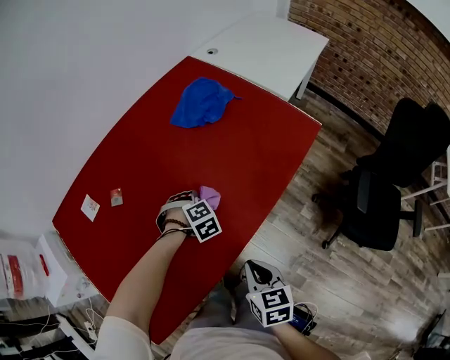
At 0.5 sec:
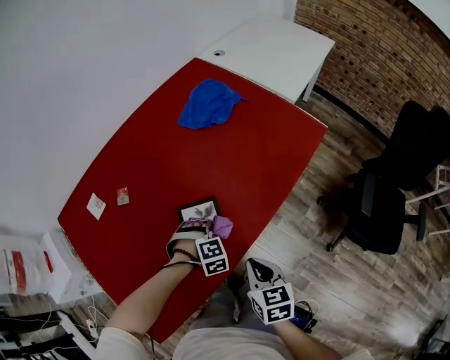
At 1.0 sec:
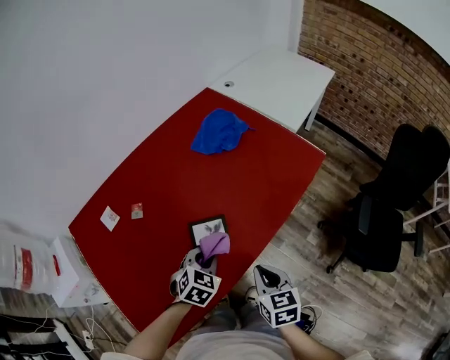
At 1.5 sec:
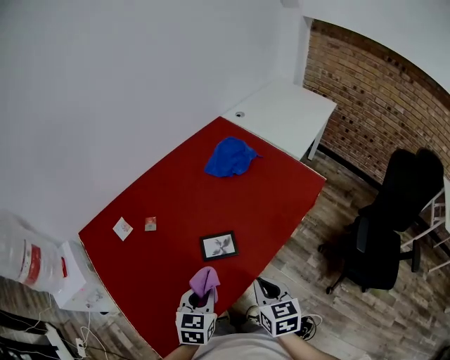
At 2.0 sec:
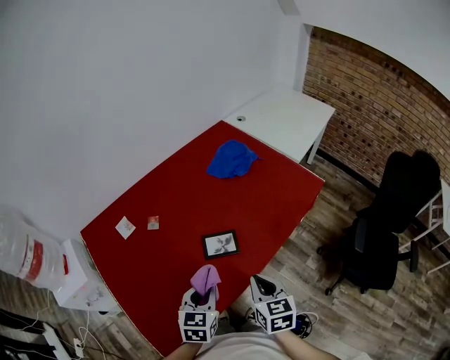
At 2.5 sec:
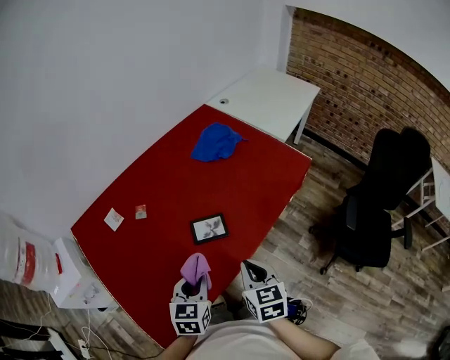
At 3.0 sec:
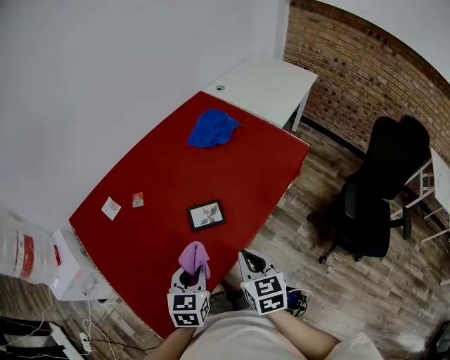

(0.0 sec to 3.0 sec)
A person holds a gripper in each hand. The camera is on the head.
0.0 sec - 1.5 sec: The left gripper goes approximately 30 cm backward and upward, and twists roughly 60 degrees counterclockwise, seen from behind, while the right gripper travels upward by some 10 cm.
1.5 sec - 3.0 sec: The grippers move only a little.

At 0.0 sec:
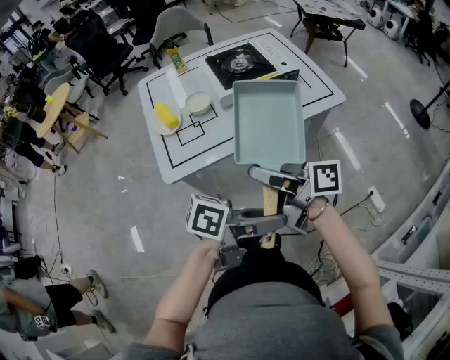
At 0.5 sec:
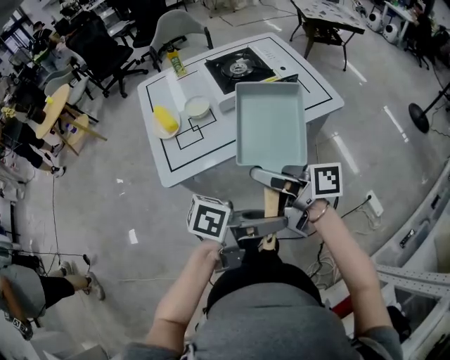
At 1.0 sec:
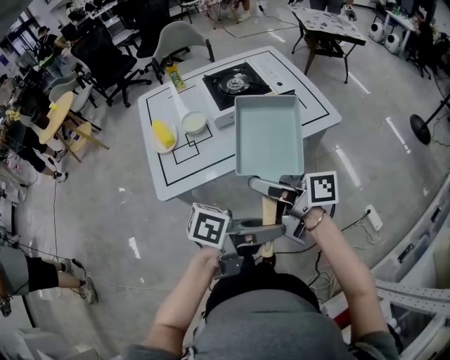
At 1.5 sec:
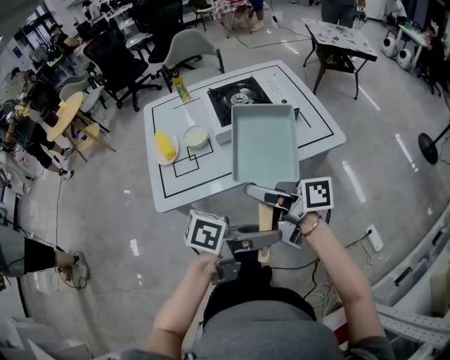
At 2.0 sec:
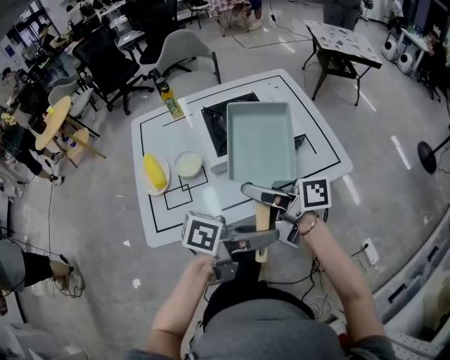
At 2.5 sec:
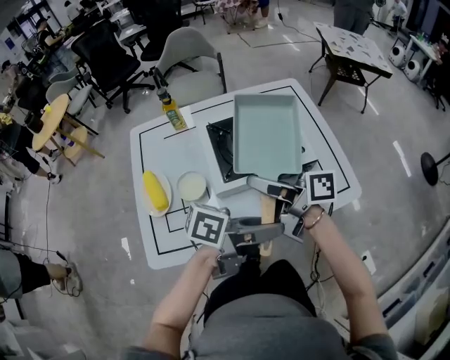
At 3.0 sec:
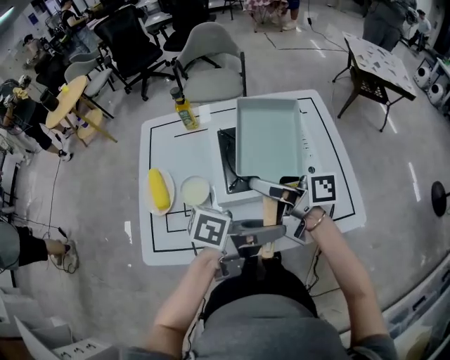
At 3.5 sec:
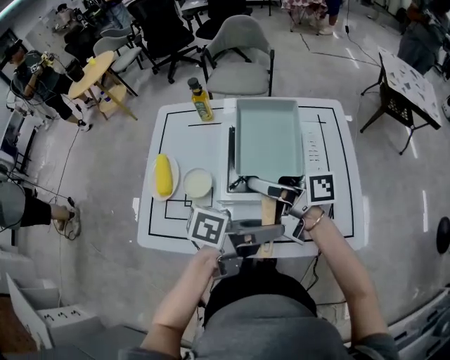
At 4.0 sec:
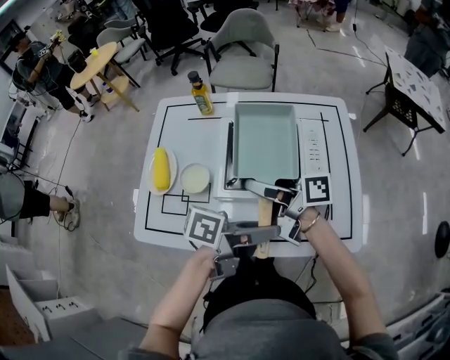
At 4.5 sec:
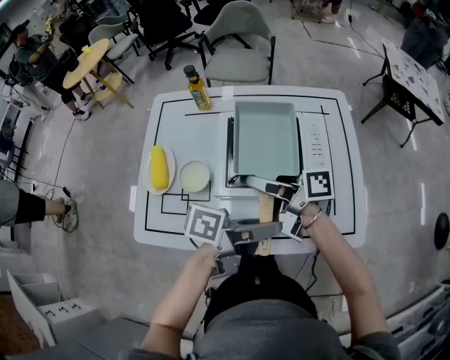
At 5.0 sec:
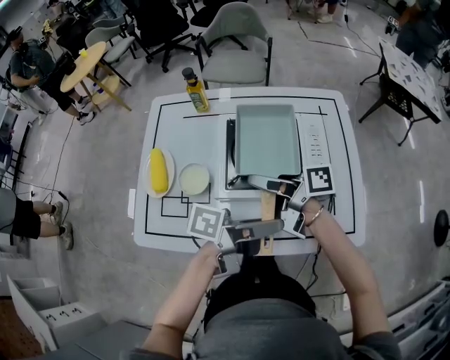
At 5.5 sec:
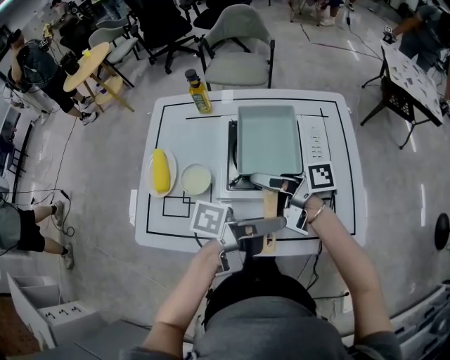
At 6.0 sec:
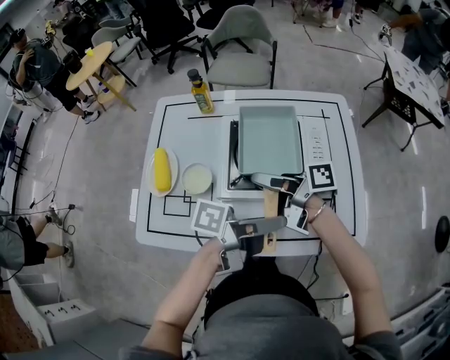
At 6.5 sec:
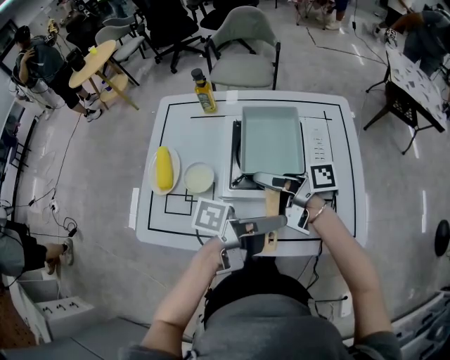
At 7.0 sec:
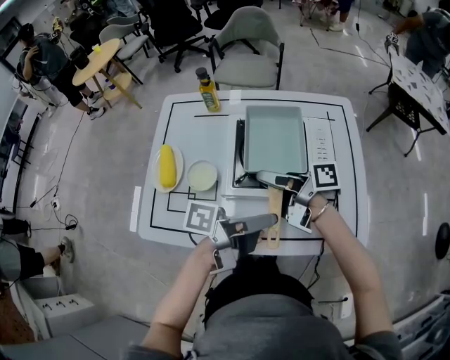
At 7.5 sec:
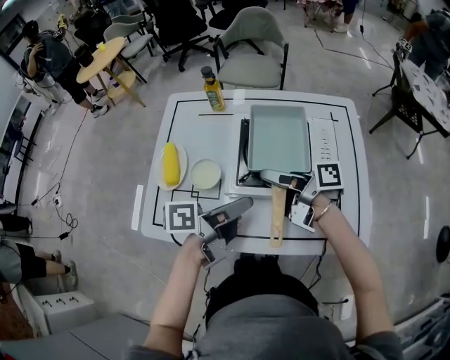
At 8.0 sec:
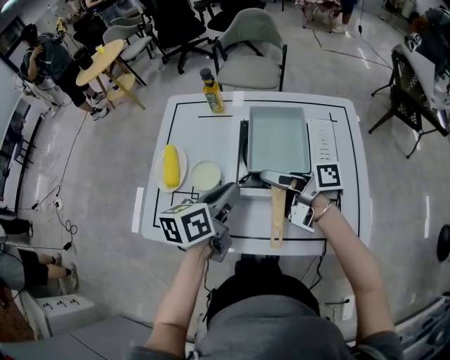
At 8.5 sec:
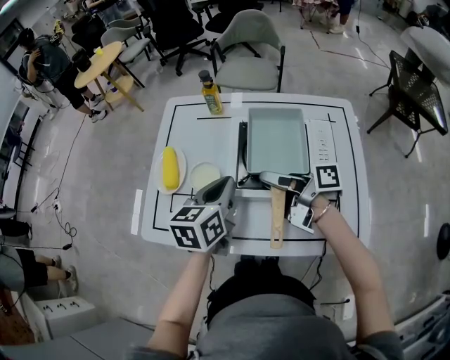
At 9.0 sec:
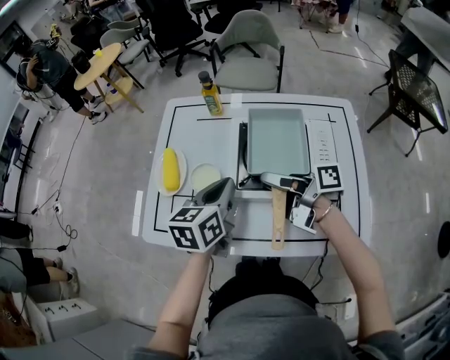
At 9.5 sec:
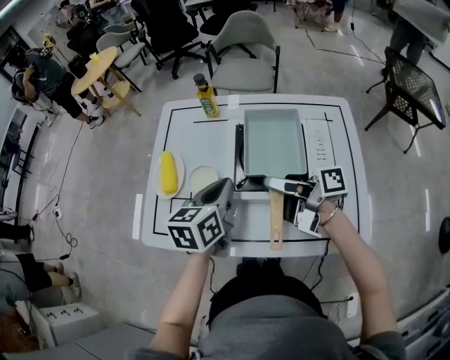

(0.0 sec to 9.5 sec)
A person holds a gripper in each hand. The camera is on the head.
0.0 sec - 2.0 sec: The right gripper changes place by about 20 cm; the left gripper shifts by approximately 20 cm.
2.0 sec - 4.0 sec: The right gripper moves roughly 15 cm, and changes its angle by some 20 degrees. Meanwhile the left gripper moves some 20 cm, and changes its angle by some 20 degrees.
4.0 sec - 5.5 sec: There are only small adjustments of the grippers.
5.5 sec - 7.5 sec: The left gripper changes place by some 10 cm, and turns by some 30 degrees.
7.5 sec - 9.5 sec: The left gripper moves forward, some 5 cm, turns by some 50 degrees, and closes.

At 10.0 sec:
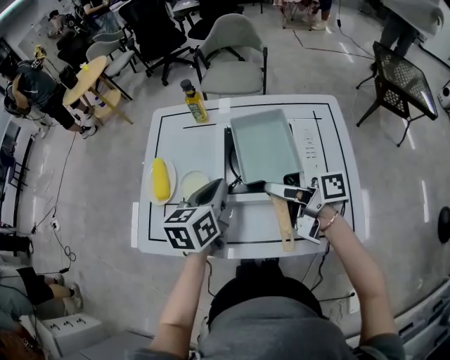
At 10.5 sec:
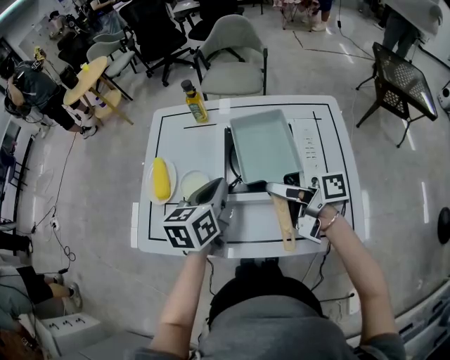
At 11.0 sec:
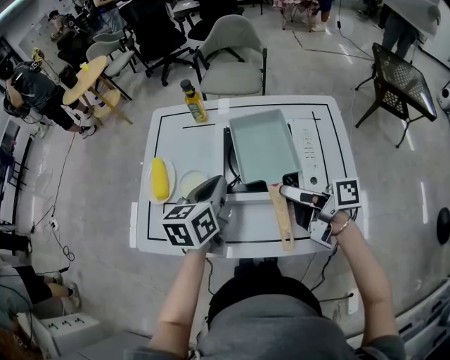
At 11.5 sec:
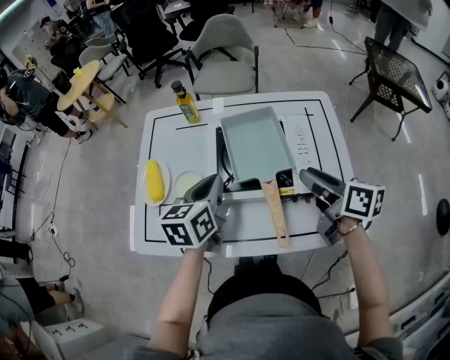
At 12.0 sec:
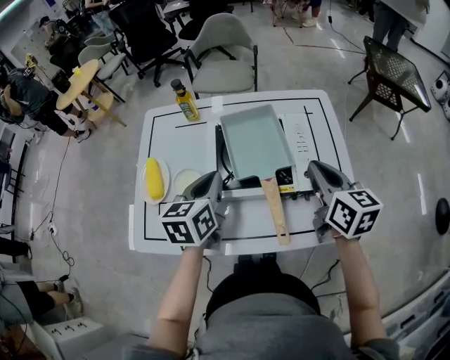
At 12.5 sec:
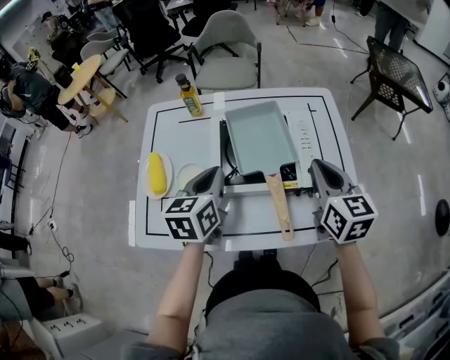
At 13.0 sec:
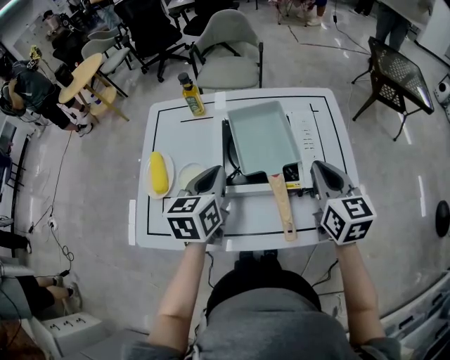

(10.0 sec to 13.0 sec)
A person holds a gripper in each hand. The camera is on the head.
10.0 sec - 11.5 sec: The right gripper goes some 10 cm to the right, and changes its angle by roughly 40 degrees.
11.5 sec - 13.0 sec: The right gripper swivels roughly 40 degrees, and closes.

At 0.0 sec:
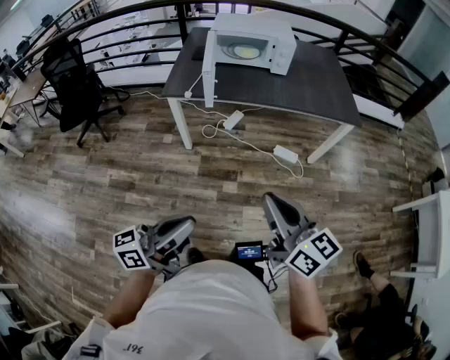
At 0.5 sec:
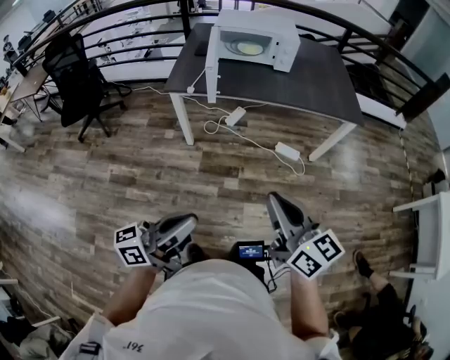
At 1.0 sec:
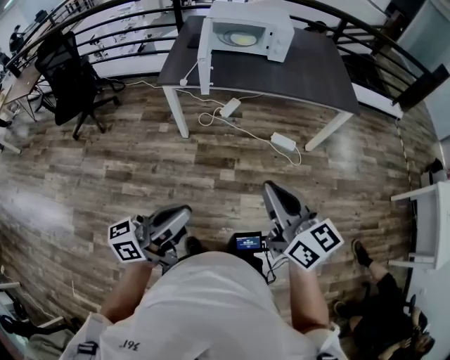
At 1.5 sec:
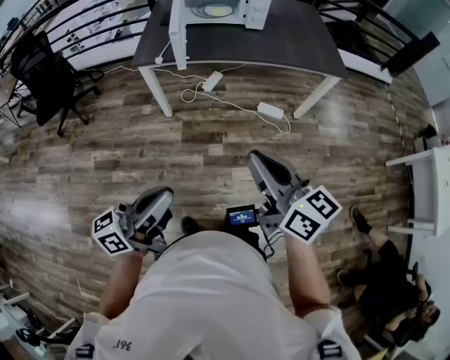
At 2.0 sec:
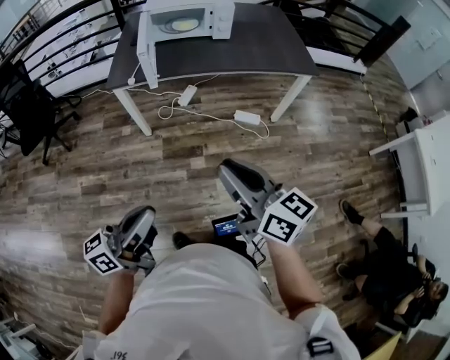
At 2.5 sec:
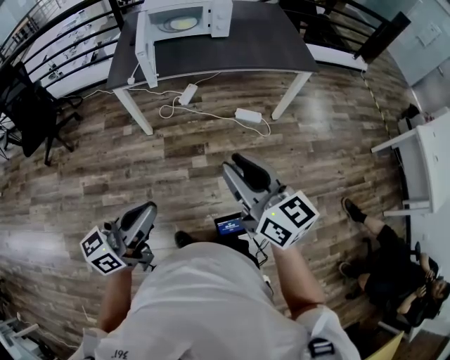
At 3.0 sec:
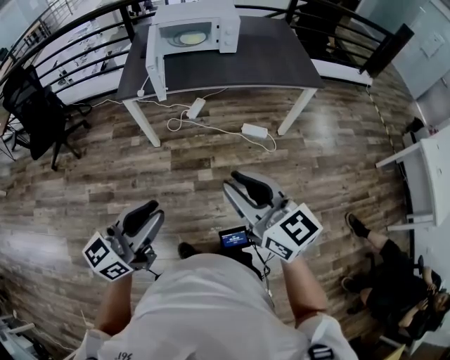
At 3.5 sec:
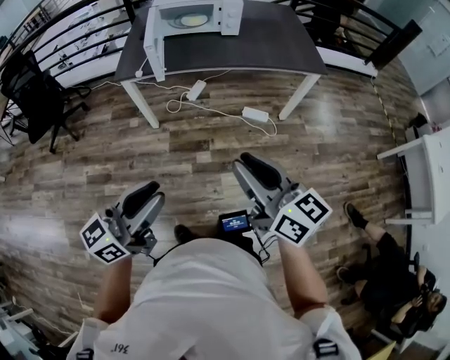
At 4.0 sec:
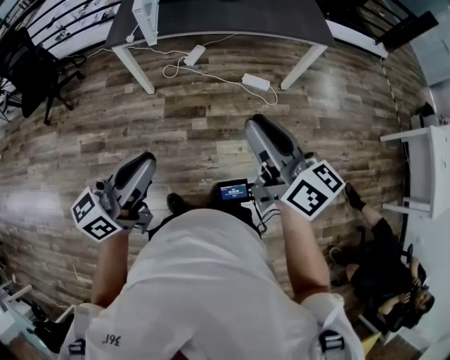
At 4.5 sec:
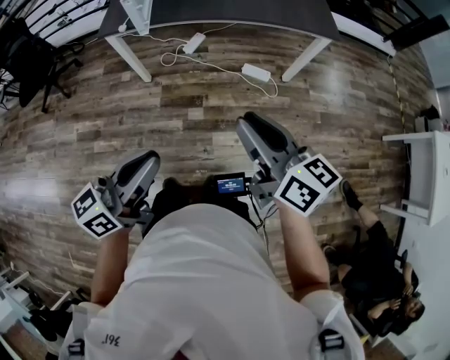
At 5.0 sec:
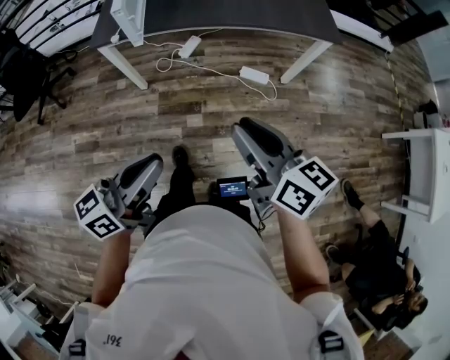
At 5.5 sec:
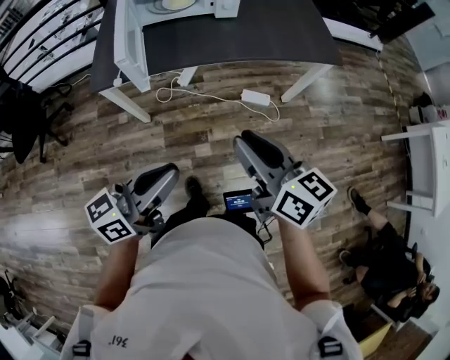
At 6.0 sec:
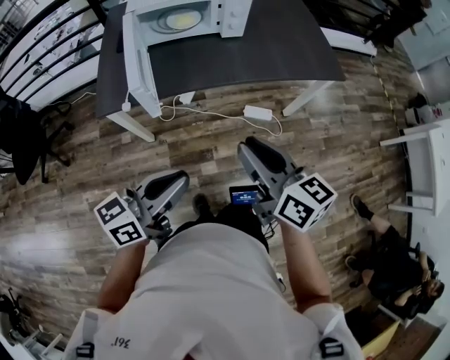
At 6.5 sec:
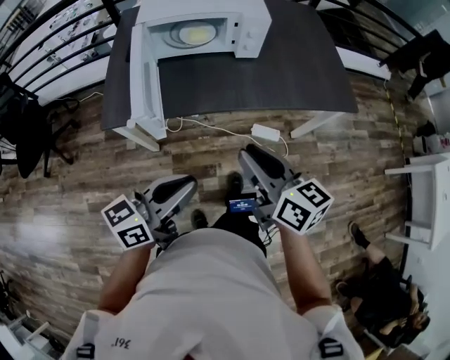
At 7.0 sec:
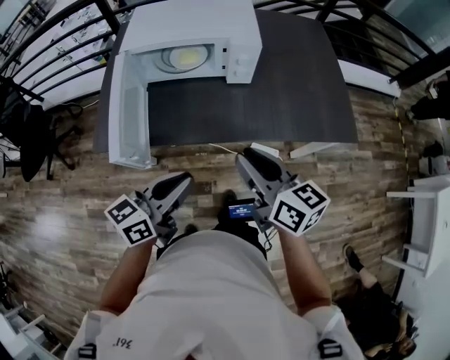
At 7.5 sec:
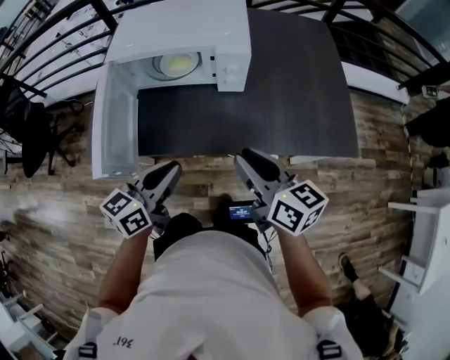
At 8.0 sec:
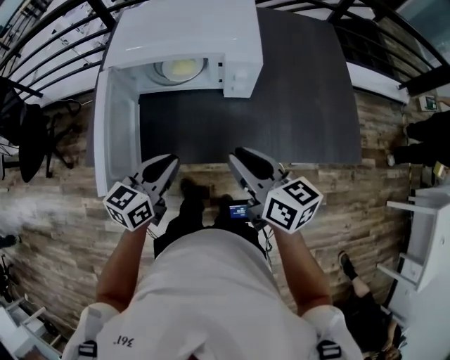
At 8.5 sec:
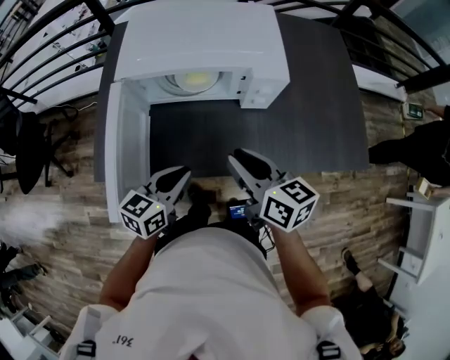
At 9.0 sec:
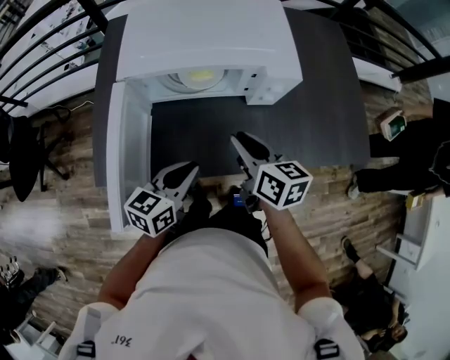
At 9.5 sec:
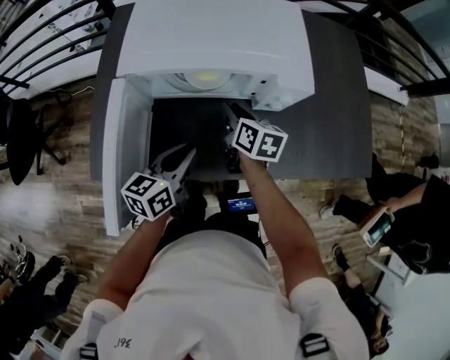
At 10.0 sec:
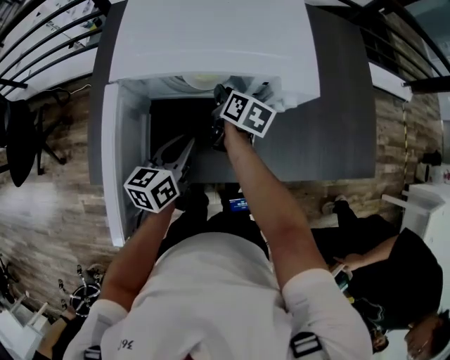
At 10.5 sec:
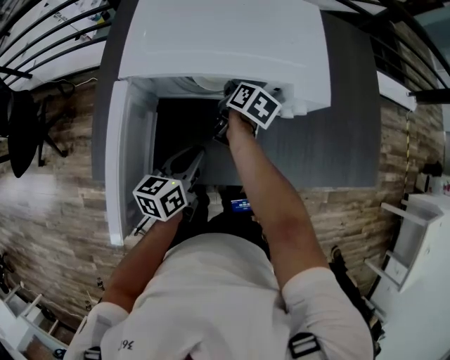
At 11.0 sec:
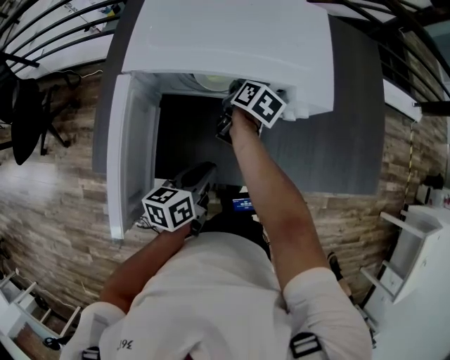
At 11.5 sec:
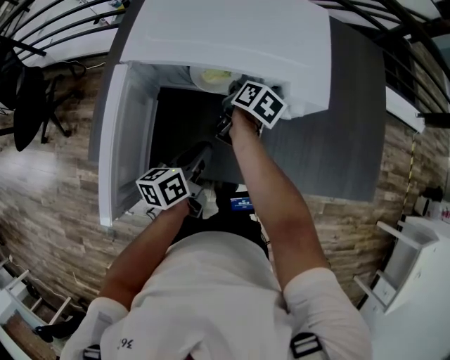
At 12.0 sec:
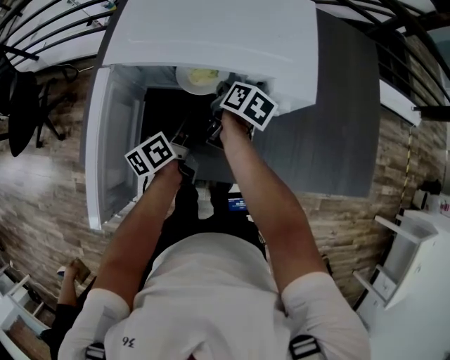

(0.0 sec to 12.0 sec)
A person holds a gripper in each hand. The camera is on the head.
0.0 sec - 2.0 sec: There are only small adjustments of the grippers.
2.0 sec - 4.0 sec: The grippers both shift to the right by roughly 10 cm.
4.0 sec - 6.0 sec: The right gripper moves forward and to the left, roughly 30 cm; the left gripper travels forward by roughly 30 cm.
6.0 sec - 8.0 sec: Both grippers move forward, about 35 cm. The left gripper changes its angle by about 30 degrees.
8.0 sec - 10.0 sec: The right gripper travels forward, downward and to the left by about 35 cm, and changes its angle by some 40 degrees. Meanwhile the left gripper heads forward, to the left and downward, covering roughly 20 cm.
10.0 sec - 12.0 sec: The left gripper shifts about 5 cm forward and downward, and changes its angle by some 30 degrees.
